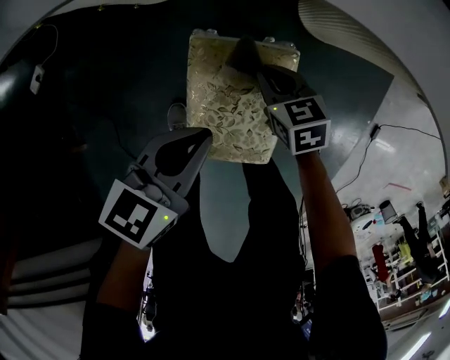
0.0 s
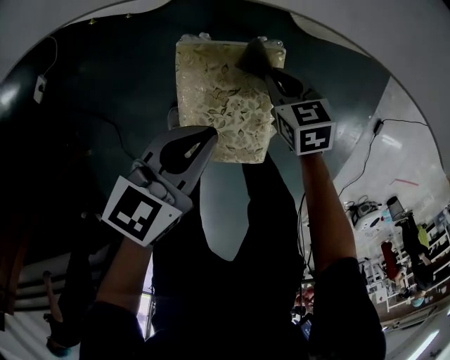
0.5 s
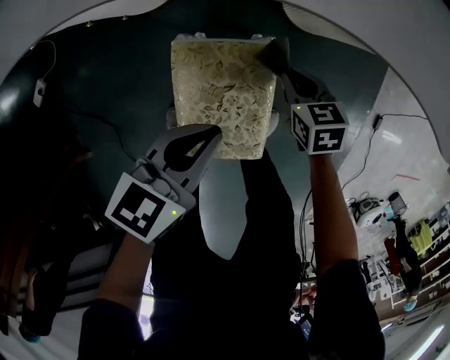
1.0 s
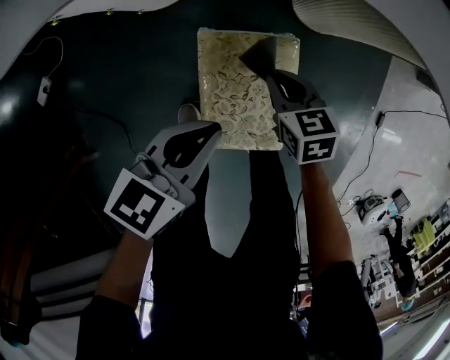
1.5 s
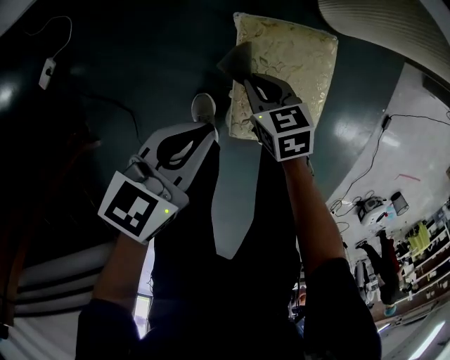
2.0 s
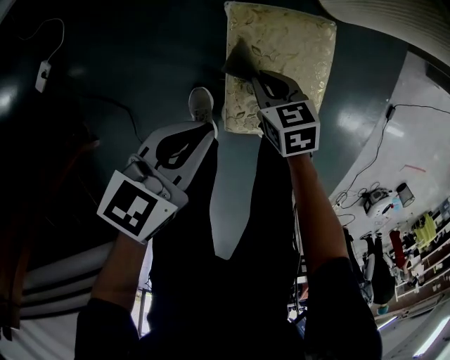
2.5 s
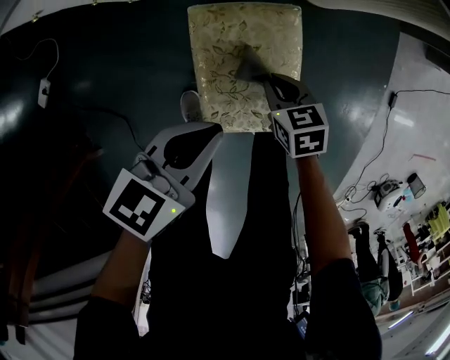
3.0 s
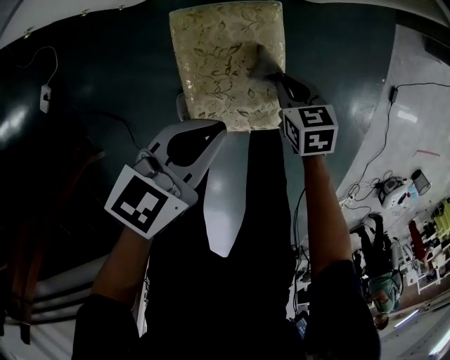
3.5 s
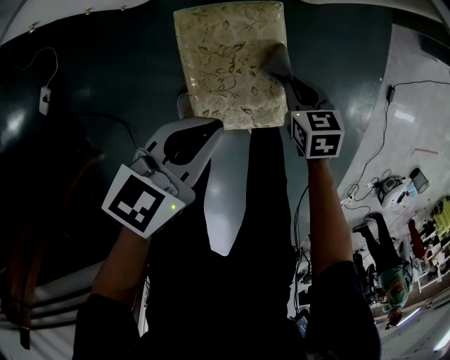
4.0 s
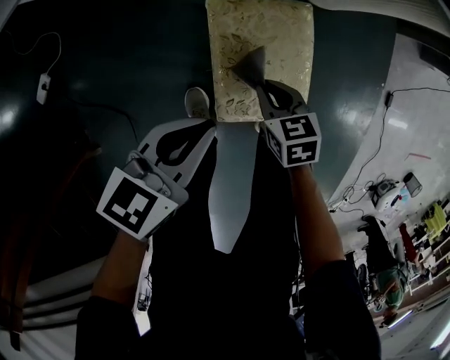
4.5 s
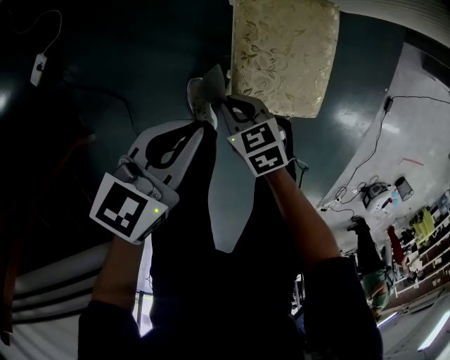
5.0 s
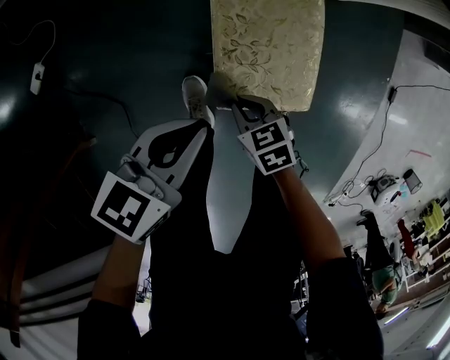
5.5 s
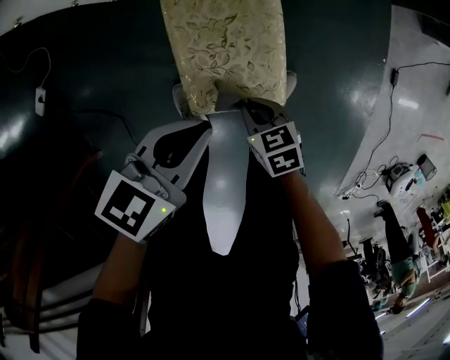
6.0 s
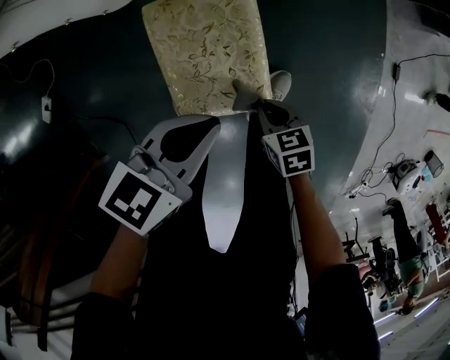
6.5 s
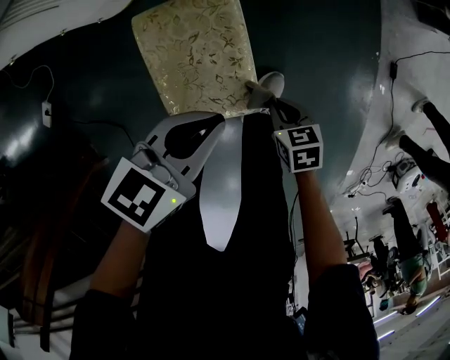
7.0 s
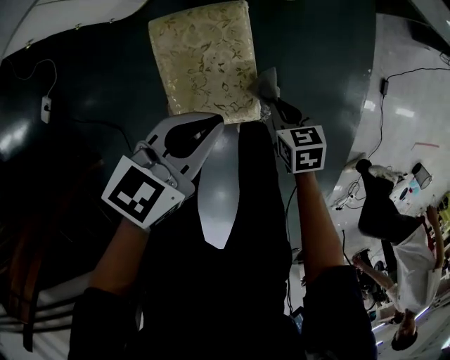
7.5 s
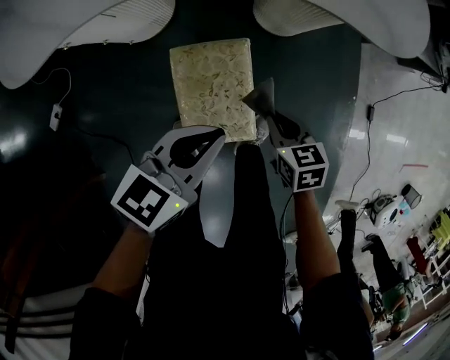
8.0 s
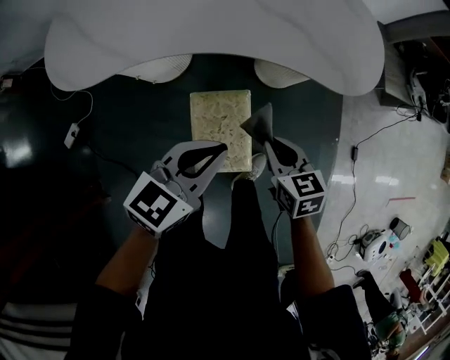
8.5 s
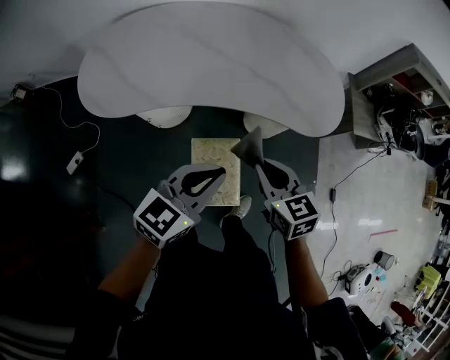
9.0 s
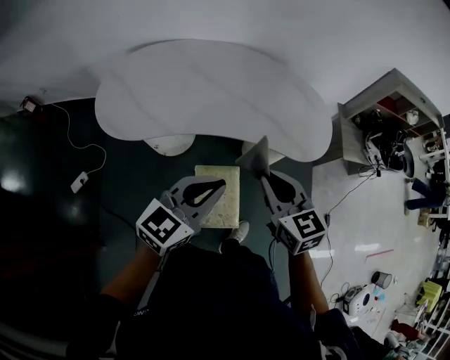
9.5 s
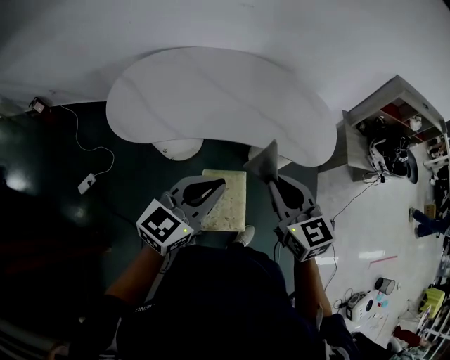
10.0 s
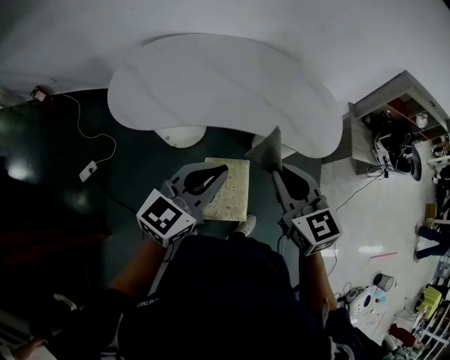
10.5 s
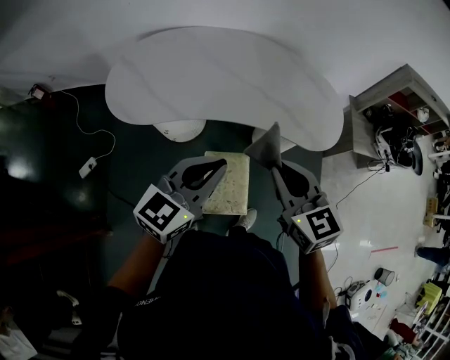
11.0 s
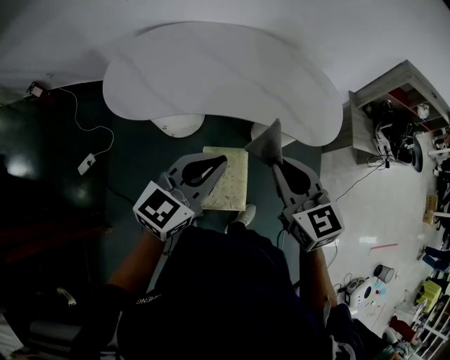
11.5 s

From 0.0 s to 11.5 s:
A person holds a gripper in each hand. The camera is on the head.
From 0.0 s to 2.0 s: The grippers both shift to the left and backward by approximately 10 cm.
From 2.0 s to 4.0 s: The left gripper goes about 10 cm to the right. Meanwhile the right gripper is displaced to the right by about 20 cm.
From 6.0 s to 7.5 s: The left gripper moves roughly 10 cm; the right gripper changes place by about 15 cm.
From 7.5 s to 9.5 s: Both grippers travel together upward, approximately 50 cm. The left gripper changes its angle by roughly 30 degrees; the right gripper angles its fingers upward, by some 40 degrees.
From 9.5 s to 11.5 s: The grippers stay close to where they were, moving slightly.

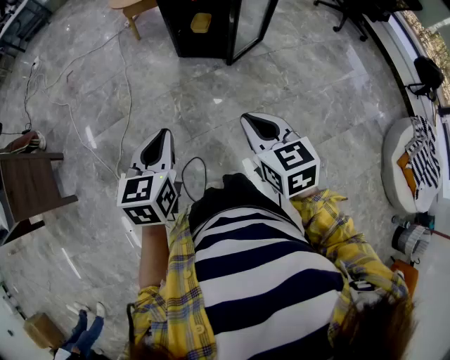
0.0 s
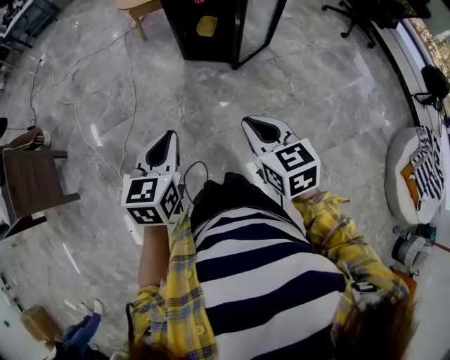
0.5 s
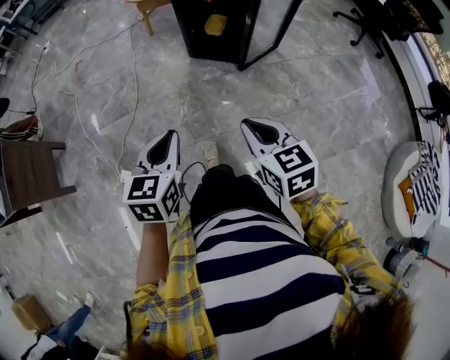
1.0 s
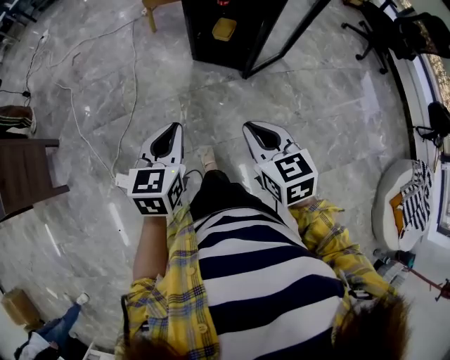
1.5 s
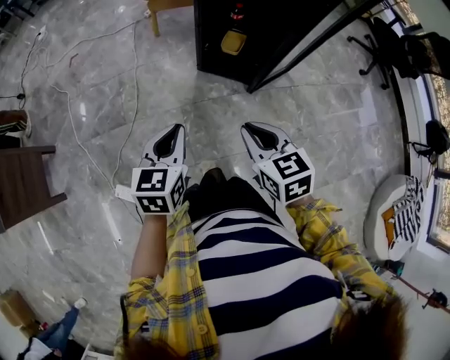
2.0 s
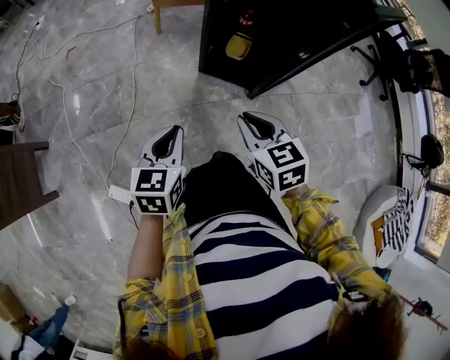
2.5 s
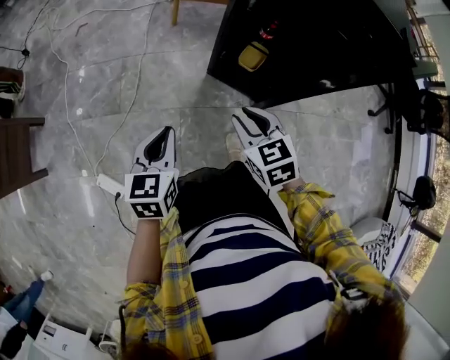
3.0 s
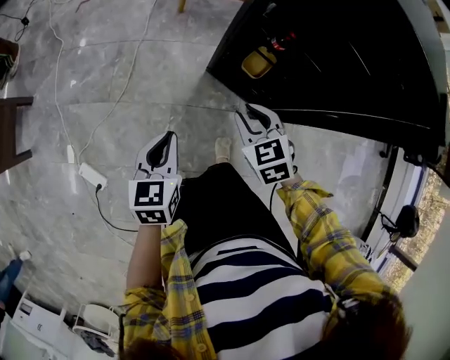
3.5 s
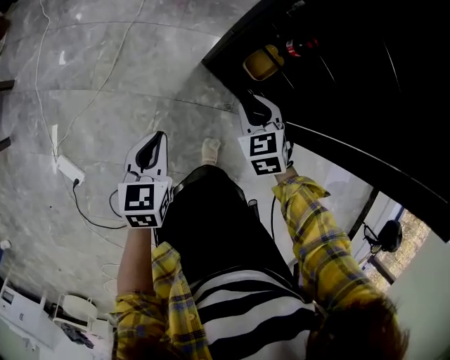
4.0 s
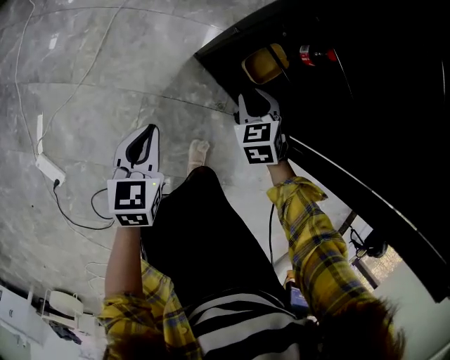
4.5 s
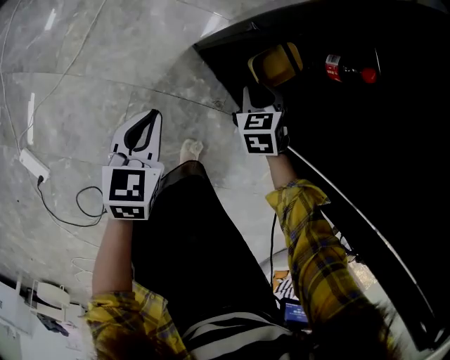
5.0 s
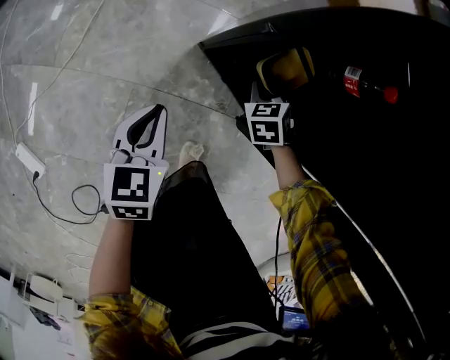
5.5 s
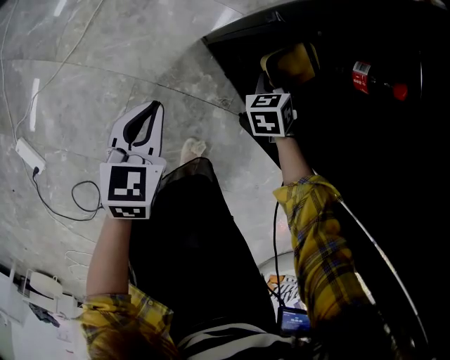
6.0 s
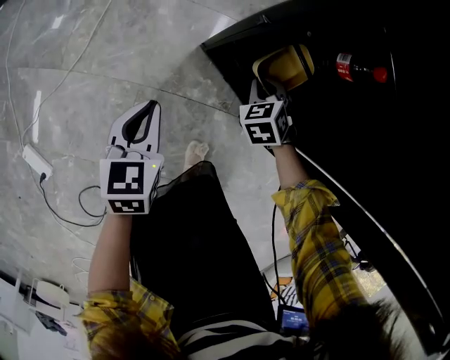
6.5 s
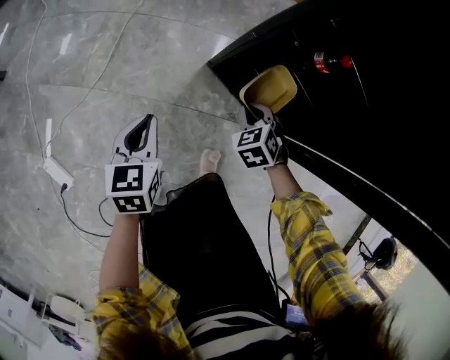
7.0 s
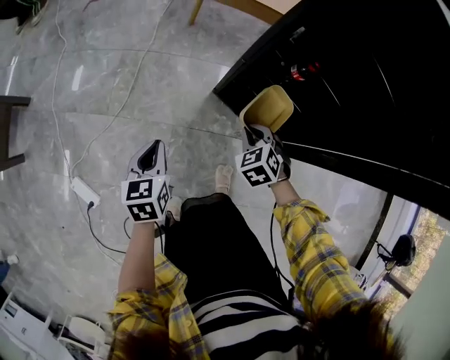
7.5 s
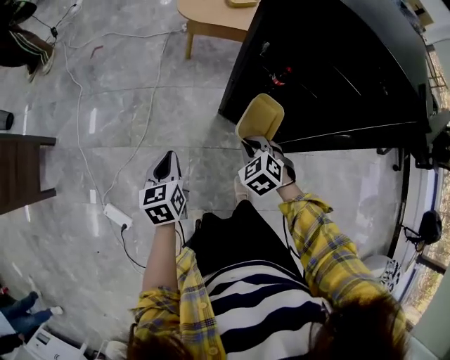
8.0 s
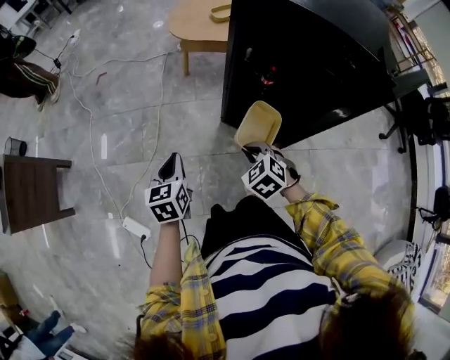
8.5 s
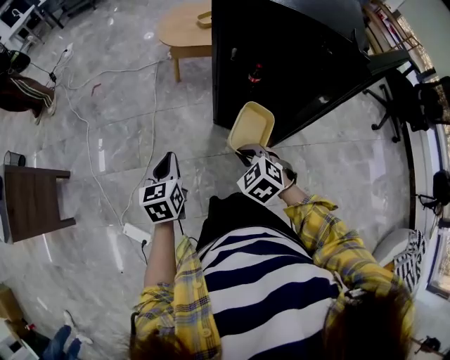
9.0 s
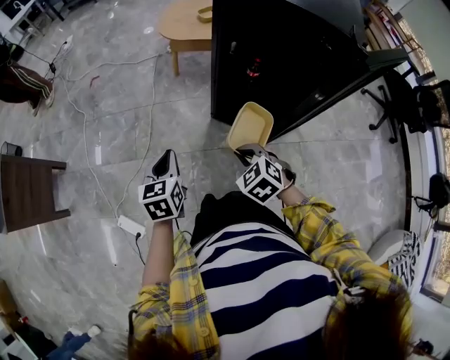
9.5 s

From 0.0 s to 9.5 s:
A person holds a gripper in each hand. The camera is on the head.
From 0.0 s to 2.0 s: The two grippers go some 25 cm forward.
From 2.0 s to 4.0 s: The right gripper heads forward and downward, covering about 40 cm, and changes its angle by some 40 degrees. Meanwhile the left gripper travels downward and forward by about 25 cm, and rotates about 30 degrees.
From 4.0 s to 5.5 s: Both grippers travel together downward and forward, some 25 cm.
From 5.5 s to 7.5 s: The left gripper travels upward, to the left and backward by some 20 cm. Meanwhile the right gripper is displaced upward, backward and to the left by some 25 cm.
From 7.5 s to 9.5 s: The left gripper moves upward, roughly 20 cm, while the right gripper heads upward and backward, covering about 25 cm.

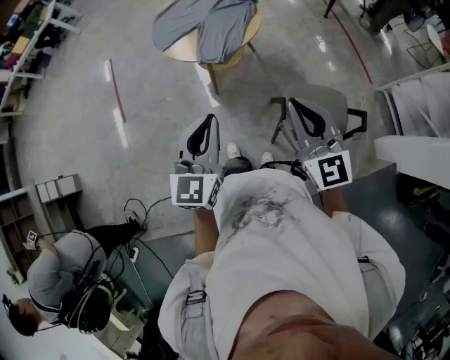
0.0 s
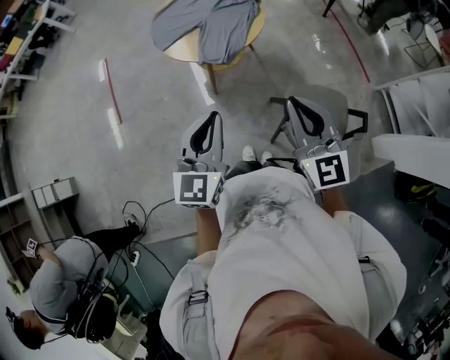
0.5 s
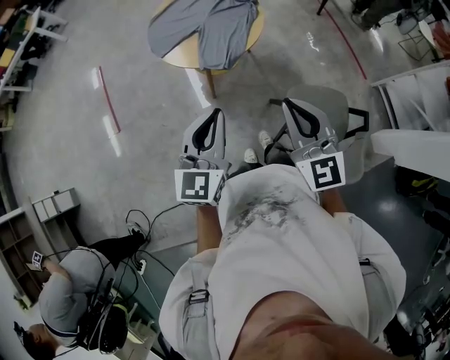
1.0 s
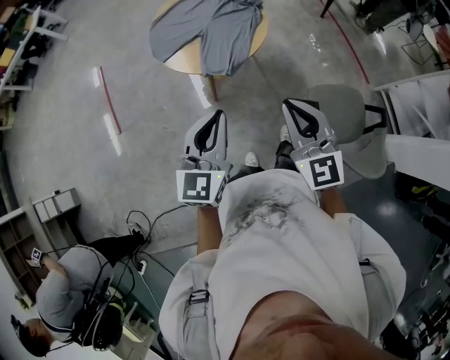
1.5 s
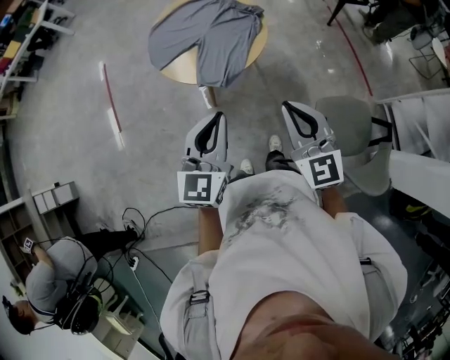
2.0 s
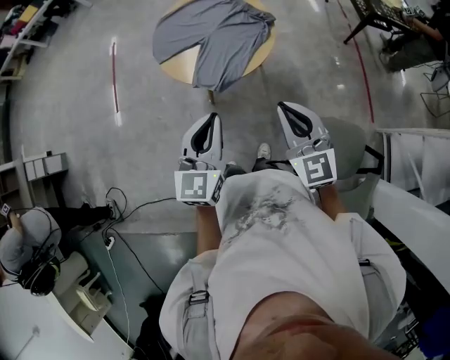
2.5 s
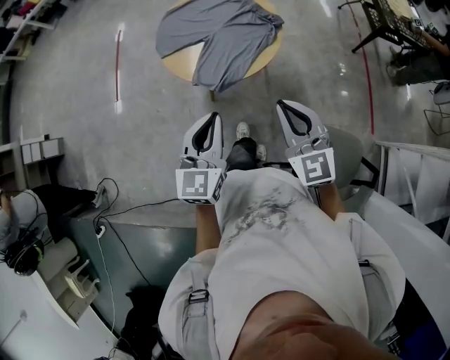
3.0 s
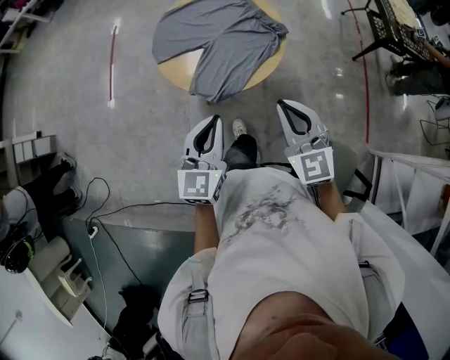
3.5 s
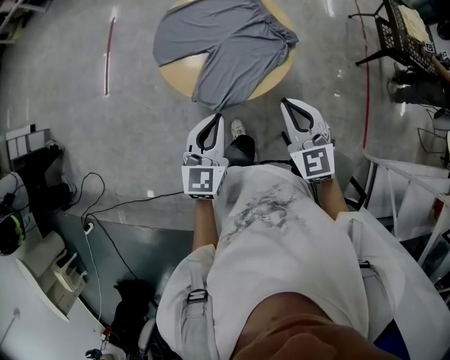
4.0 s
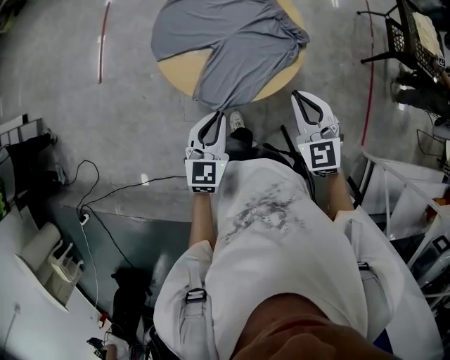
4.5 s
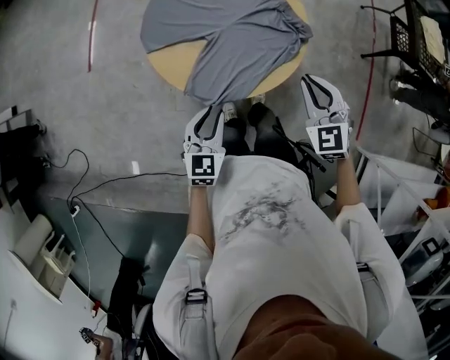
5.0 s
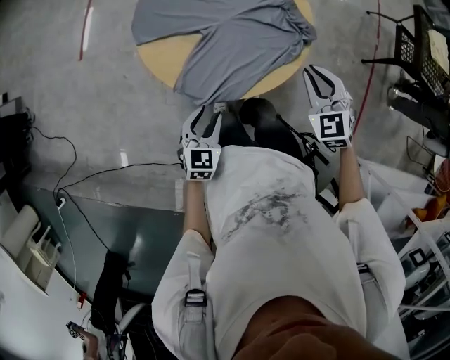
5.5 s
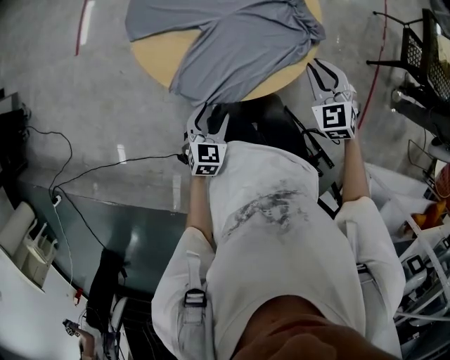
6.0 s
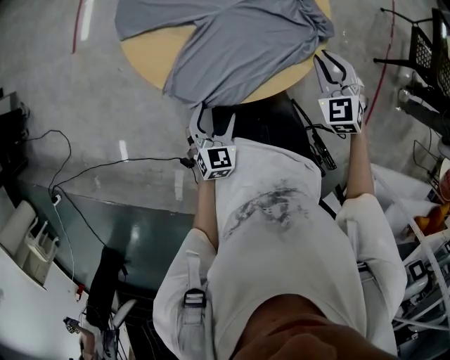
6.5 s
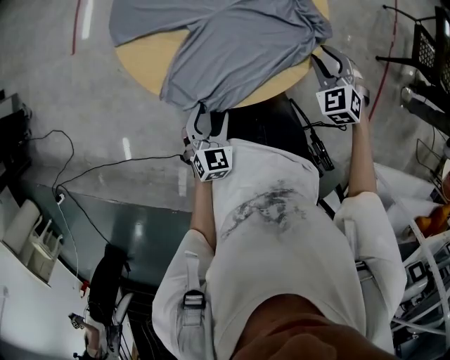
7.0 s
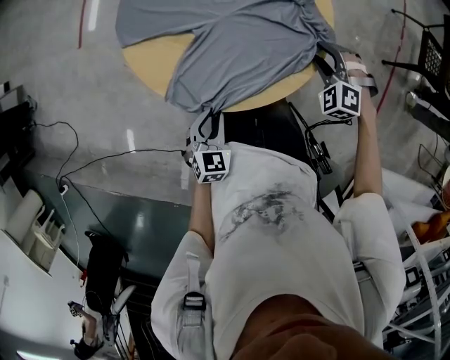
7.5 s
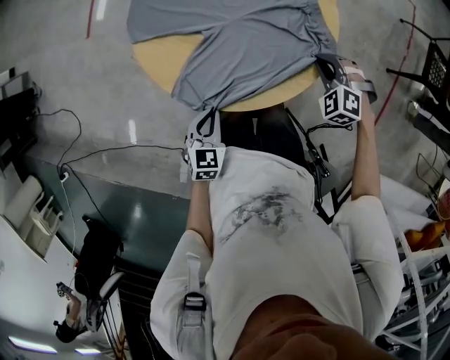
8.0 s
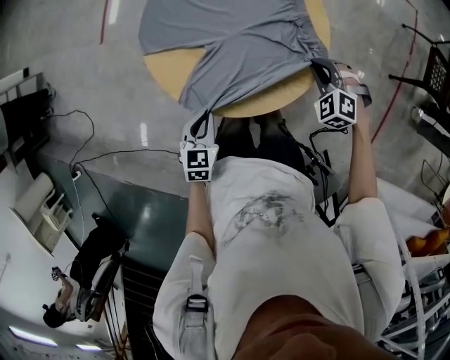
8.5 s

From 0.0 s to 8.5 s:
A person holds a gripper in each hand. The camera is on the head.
From 0.0 s to 2.0 s: Both grippers travel together forward, some 15 cm.
From 2.0 s to 4.0 s: The left gripper travels forward and downward by about 20 cm, and swivels some 20 degrees; the right gripper goes some 25 cm forward, and rotates roughly 20 degrees.
From 4.0 s to 6.5 s: The left gripper shifts some 35 cm downward, turns by approximately 30 degrees, and opens, while the right gripper is displaced downward, forward and to the right by about 35 cm, and turns by approximately 30 degrees.
From 6.5 s to 8.5 s: The right gripper heads forward, covering some 5 cm, swivels roughly 30 degrees, and opens and closes again, while the left gripper is displaced upward and forward by some 10 cm, and closes up.
